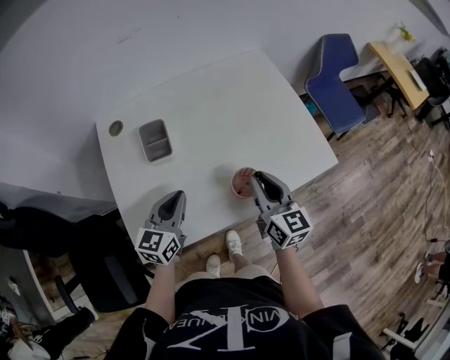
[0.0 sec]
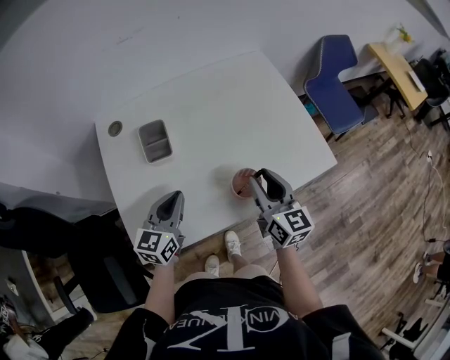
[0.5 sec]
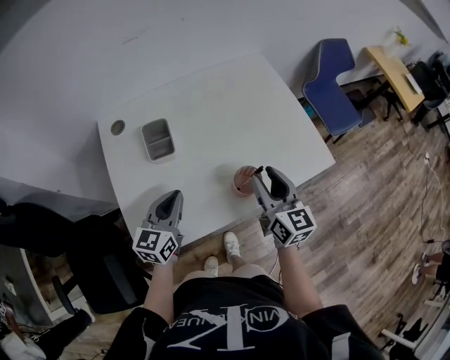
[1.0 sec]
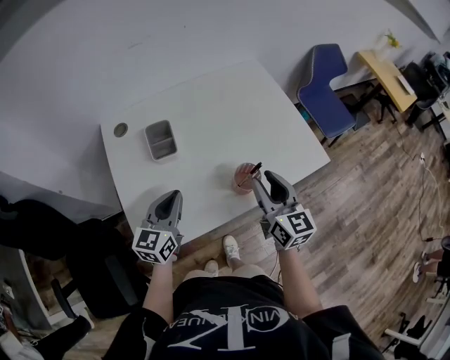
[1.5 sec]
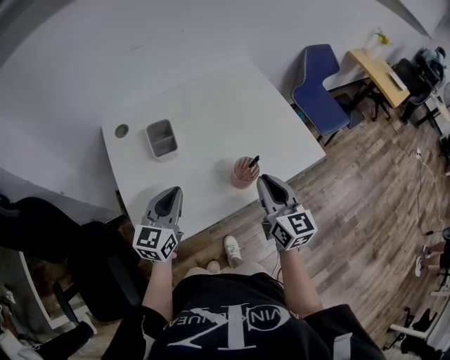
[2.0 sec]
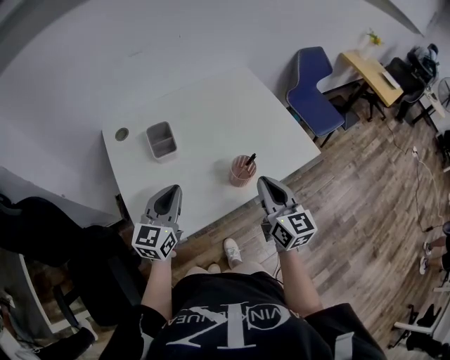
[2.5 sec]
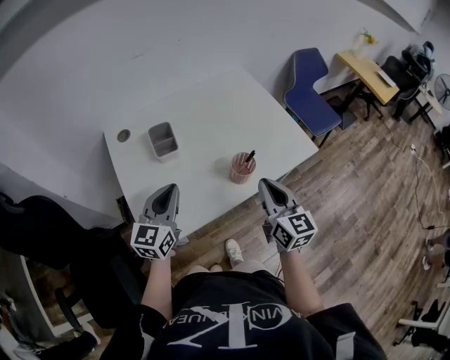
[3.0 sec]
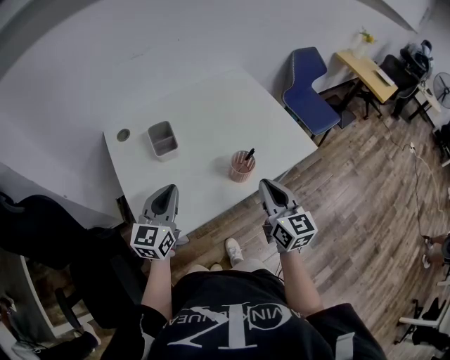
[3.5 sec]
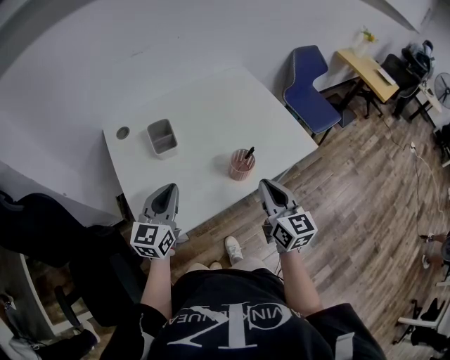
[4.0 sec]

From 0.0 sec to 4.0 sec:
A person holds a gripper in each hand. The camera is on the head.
From 0.0 sec to 2.0 sec: The left gripper ends up roughly 5 cm from where it was. Meanwhile the right gripper shifts some 5 cm backward, and opens, then closes once more.
From 2.0 sec to 4.0 sec: The right gripper goes roughly 5 cm backward.

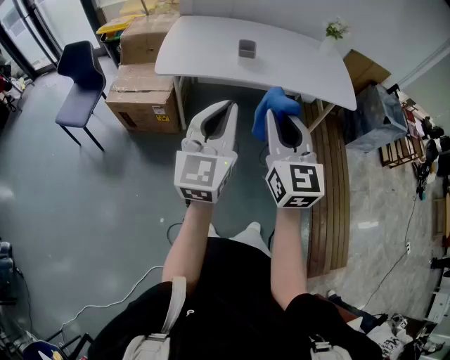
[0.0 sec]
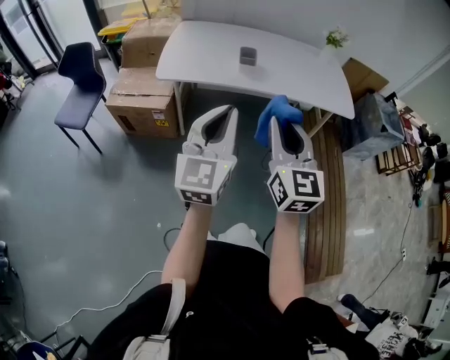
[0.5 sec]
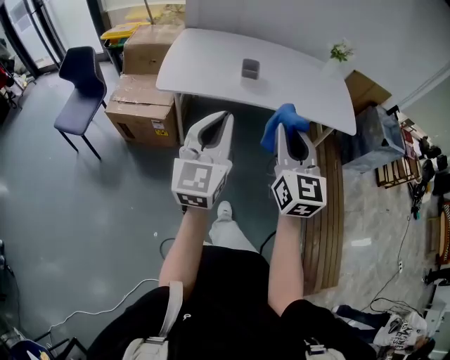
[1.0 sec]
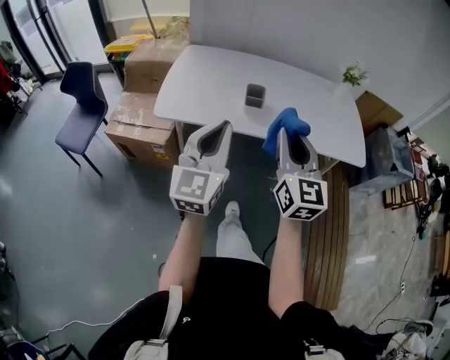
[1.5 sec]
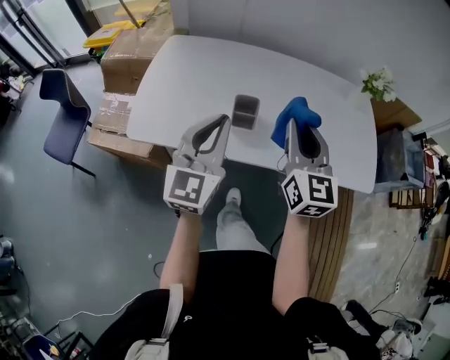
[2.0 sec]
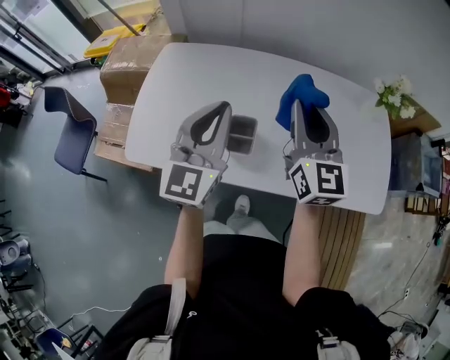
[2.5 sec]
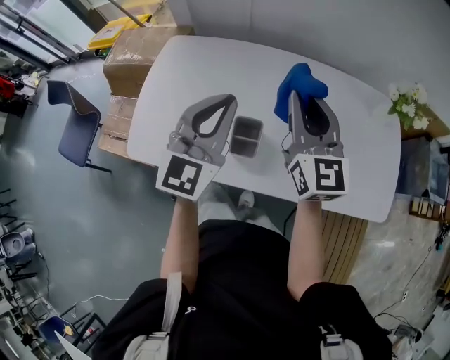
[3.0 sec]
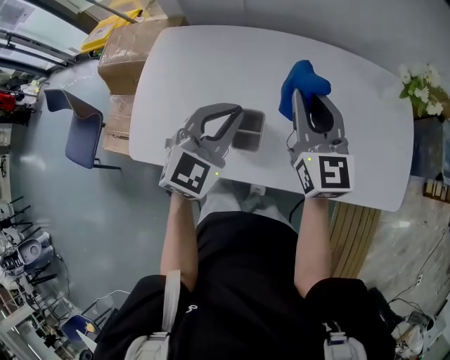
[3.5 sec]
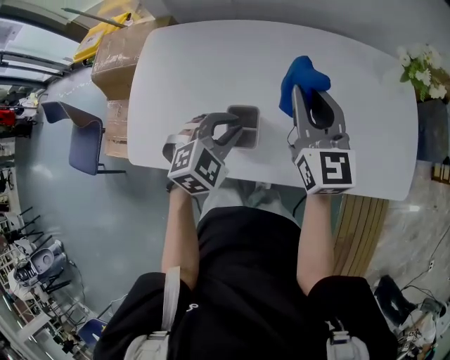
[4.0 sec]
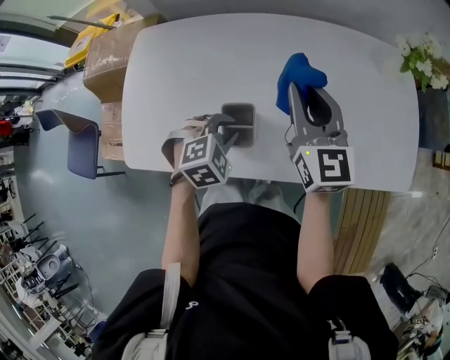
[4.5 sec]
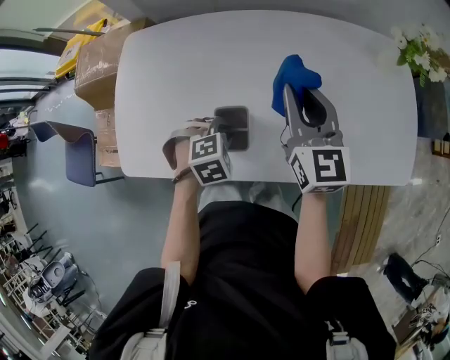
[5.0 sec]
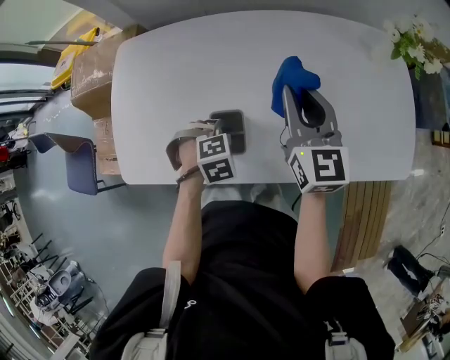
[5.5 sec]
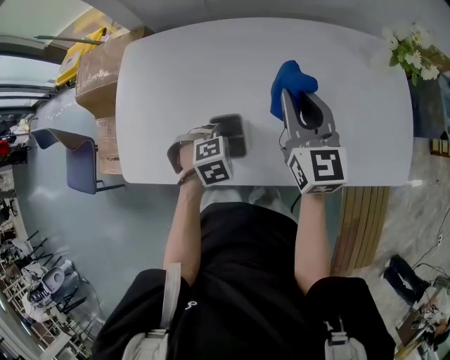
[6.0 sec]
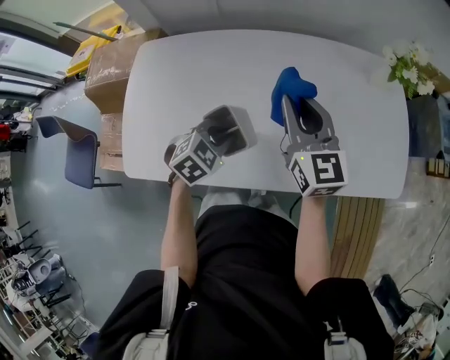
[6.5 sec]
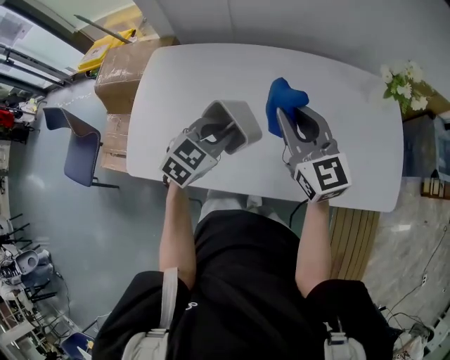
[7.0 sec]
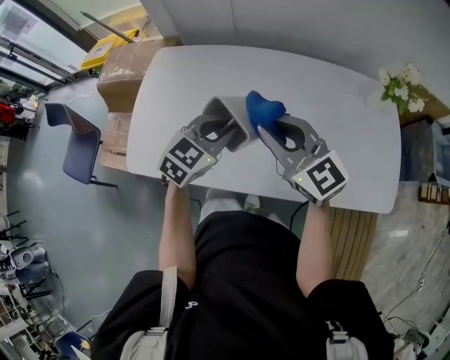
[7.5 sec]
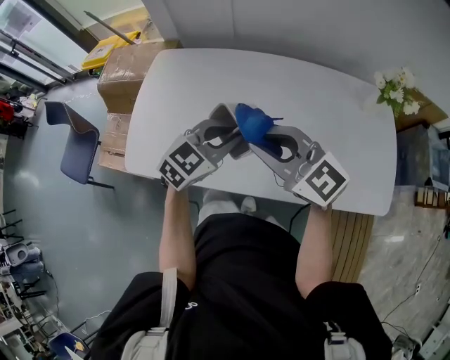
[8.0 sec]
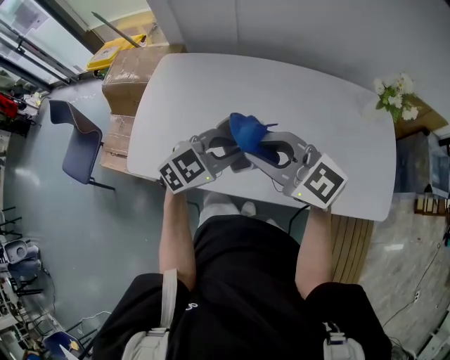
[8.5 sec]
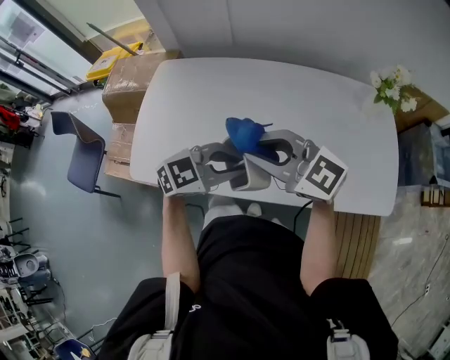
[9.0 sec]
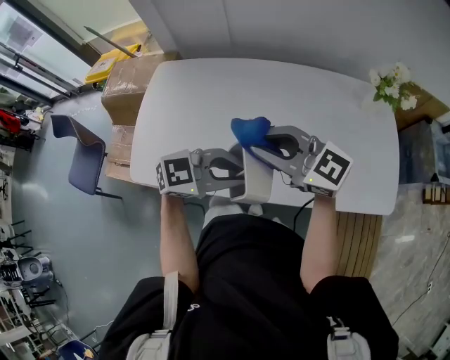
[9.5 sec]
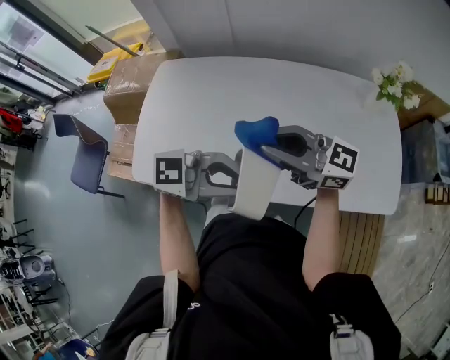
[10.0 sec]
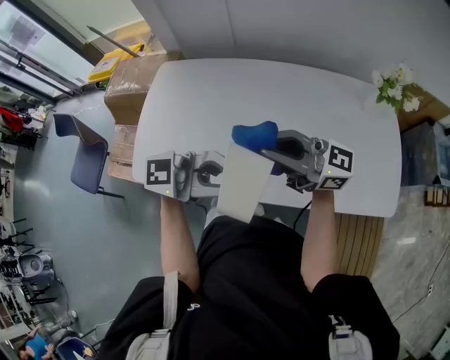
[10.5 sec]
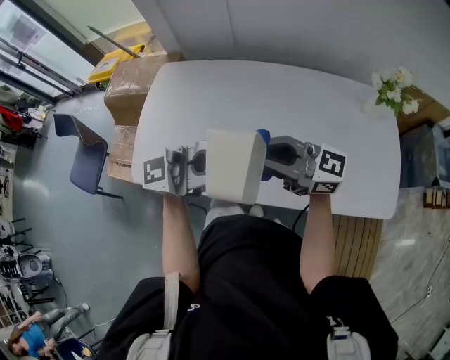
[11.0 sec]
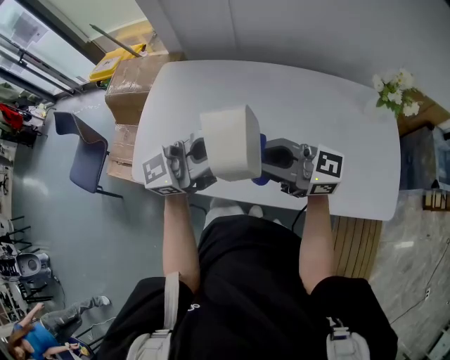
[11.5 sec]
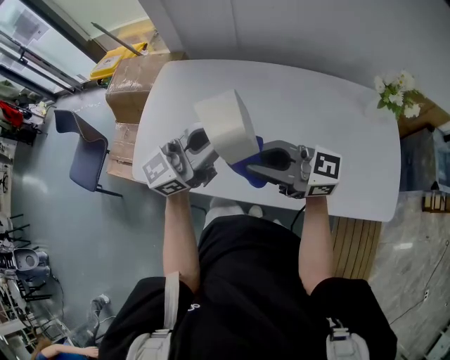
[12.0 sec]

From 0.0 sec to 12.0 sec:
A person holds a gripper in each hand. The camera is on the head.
From 0.0 sec to 2.0 sec: The two grippers travel together, forward, some 40 cm.
From 2.0 sec to 4.0 sec: The right gripper goes roughly 20 cm forward; the left gripper travels downward and forward by roughly 25 cm, and tilts its fingers roughly 50 degrees downward.
From 4.0 sec to 6.0 sec: The left gripper heads downward, covering about 15 cm, and rotates about 30 degrees.
From 6.0 sec to 8.0 sec: The left gripper heads upward, covering roughly 20 cm, and tilts its fingers about 50 degrees upward; the right gripper changes place by some 15 cm, and rotates roughly 50 degrees.
From 8.0 sec to 10.0 sec: The left gripper moves approximately 15 cm, and turns by about 50 degrees; the right gripper changes its angle by some 30 degrees.
From 10.0 sec to 12.0 sec: The left gripper ends up some 15 cm from where it was, and rotates some 50 degrees.

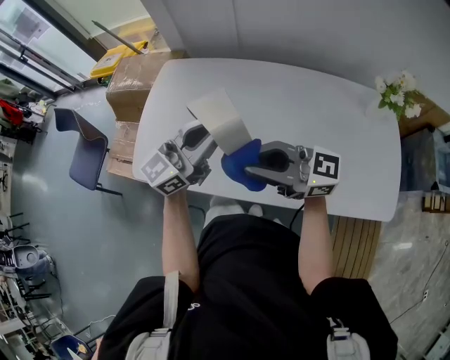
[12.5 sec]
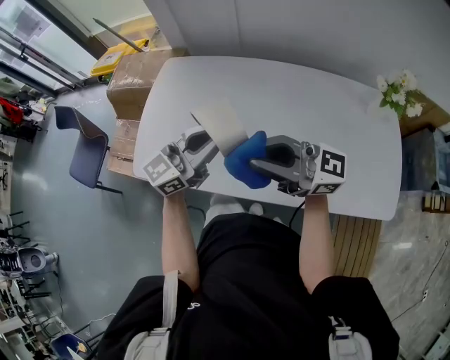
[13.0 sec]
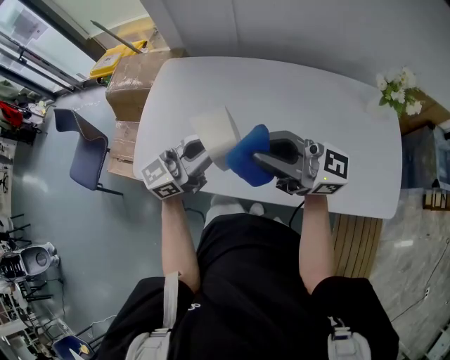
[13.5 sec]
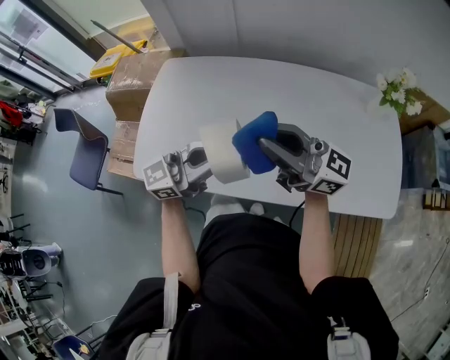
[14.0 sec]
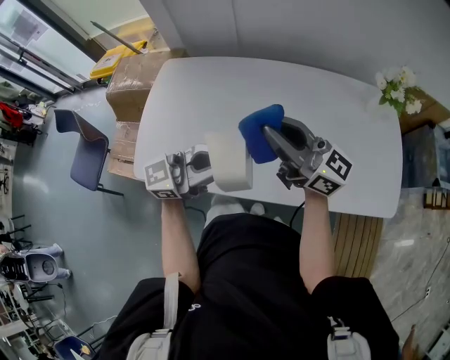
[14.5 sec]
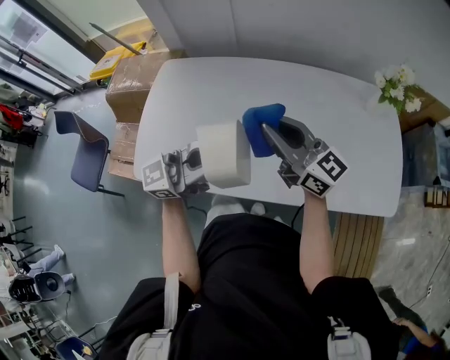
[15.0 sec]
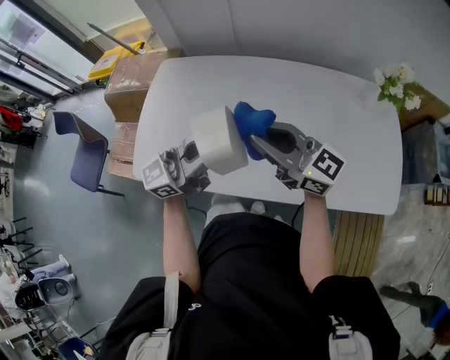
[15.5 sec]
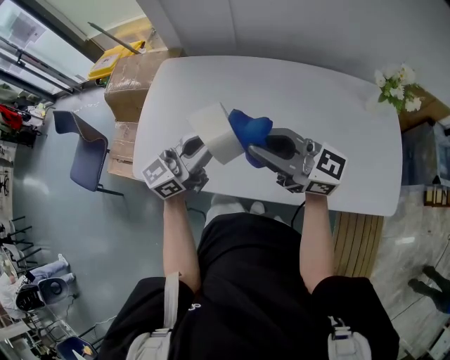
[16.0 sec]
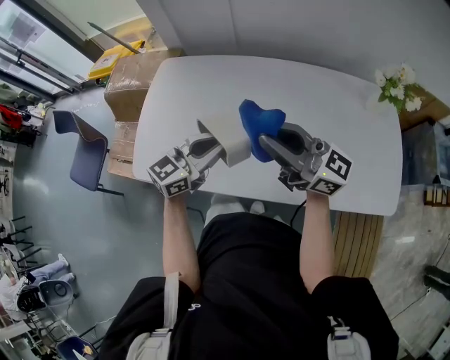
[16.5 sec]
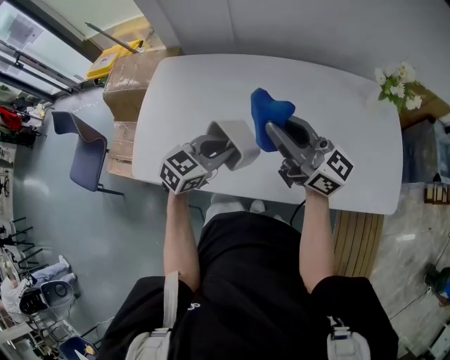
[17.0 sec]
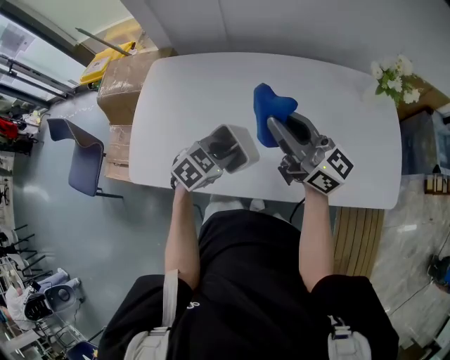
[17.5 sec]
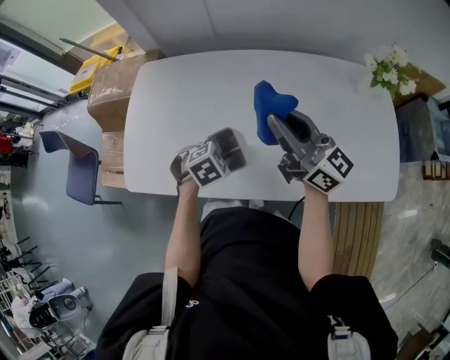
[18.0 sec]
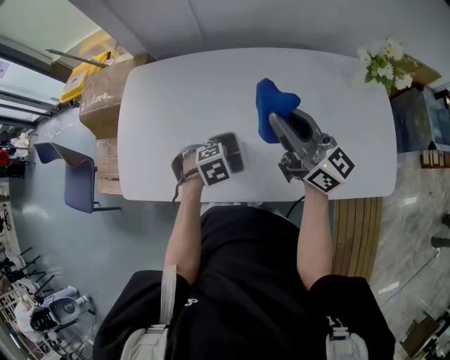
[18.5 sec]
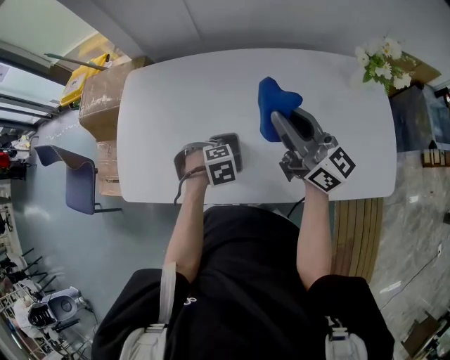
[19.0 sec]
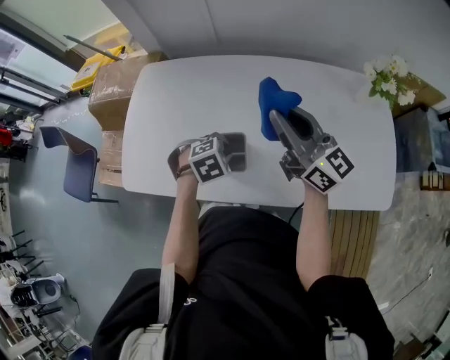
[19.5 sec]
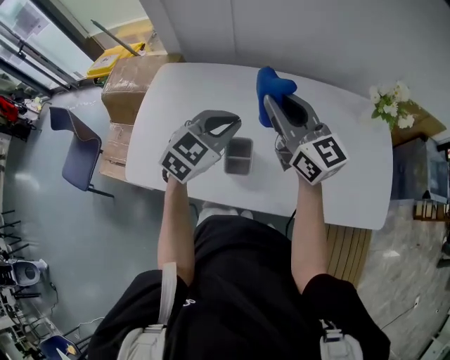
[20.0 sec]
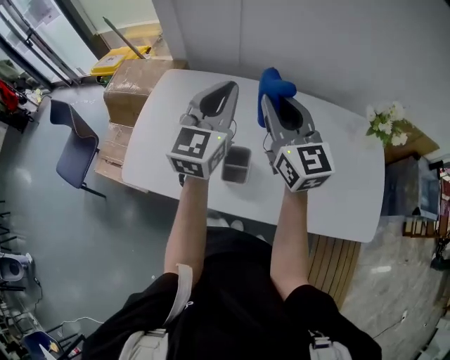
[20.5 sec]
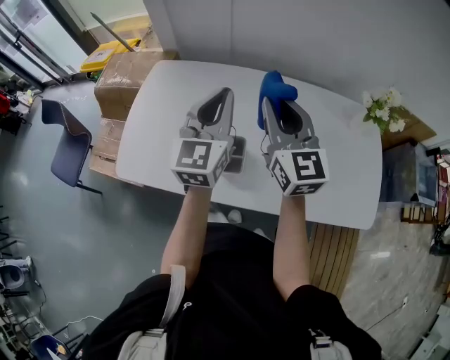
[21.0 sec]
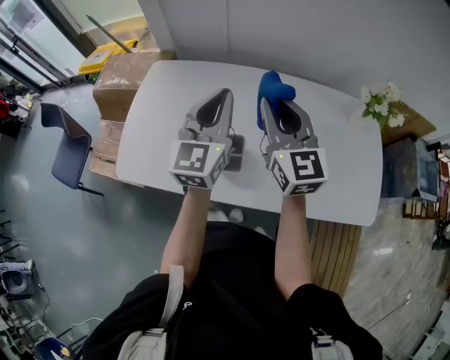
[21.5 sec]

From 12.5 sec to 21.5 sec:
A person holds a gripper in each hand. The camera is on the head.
From 12.5 sec to 14.5 sec: The right gripper ends up approximately 10 cm from where it was, and rotates roughly 30 degrees; the left gripper changes place by some 10 cm, and changes its angle by roughly 30 degrees.
From 14.5 sec to 17.0 sec: The left gripper travels downward by approximately 10 cm, and points its fingers about 40 degrees further downward.
From 17.0 sec to 19.5 sec: The right gripper ends up approximately 5 cm from where it was, while the left gripper moves downward, about 10 cm, and tips its fingers downward by about 40 degrees.
From 19.5 sec to 21.5 sec: The right gripper swivels approximately 30 degrees. Meanwhile the left gripper is displaced upward by approximately 30 cm, and angles its fingers upward, by about 70 degrees.

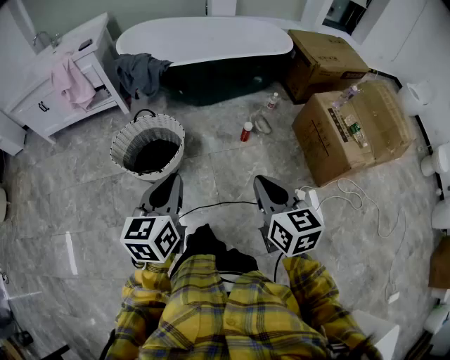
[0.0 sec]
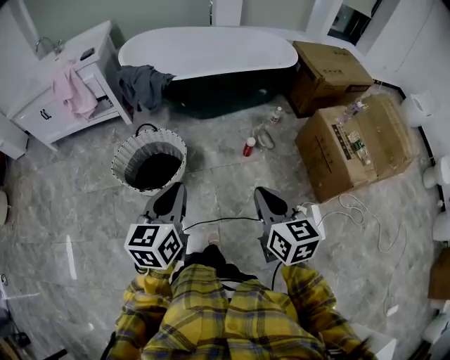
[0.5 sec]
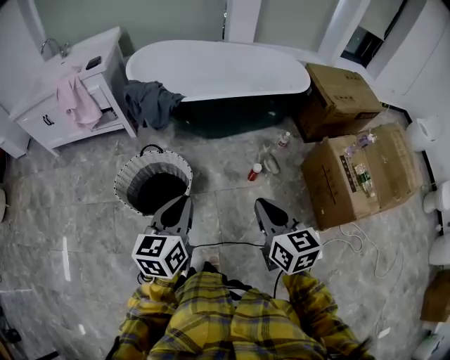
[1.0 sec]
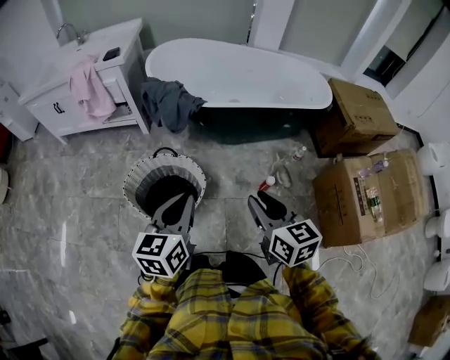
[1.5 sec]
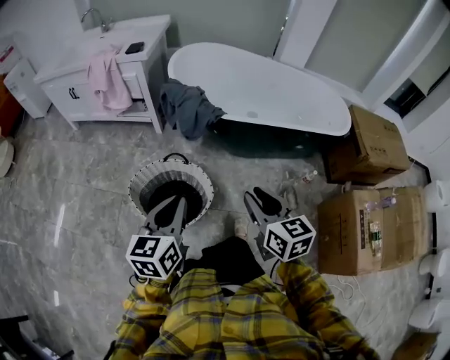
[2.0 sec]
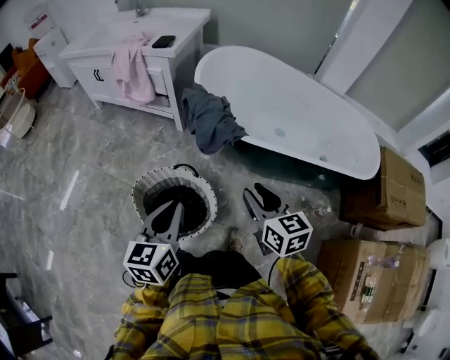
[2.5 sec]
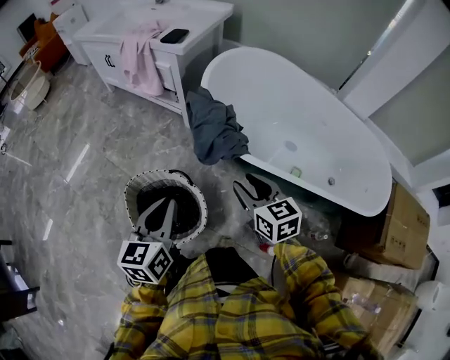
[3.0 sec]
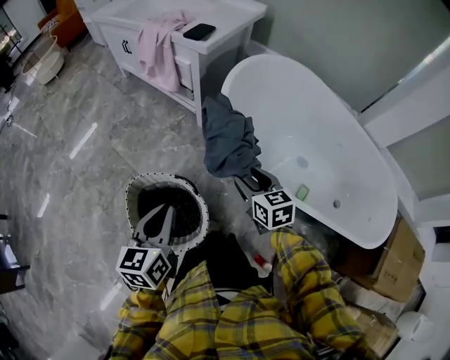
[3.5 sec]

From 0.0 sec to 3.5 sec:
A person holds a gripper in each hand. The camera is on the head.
From 0.0 sec to 2.0 sec: The grippers both shift forward by about 30 cm. The right gripper turns by roughly 20 degrees.
From 2.0 sec to 3.5 sec: The left gripper moves approximately 20 cm, and changes its angle by approximately 30 degrees. The right gripper shifts by roughly 40 cm, and swivels roughly 40 degrees.
